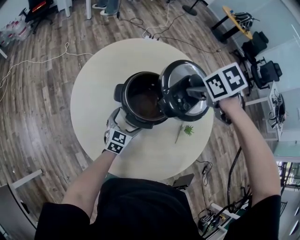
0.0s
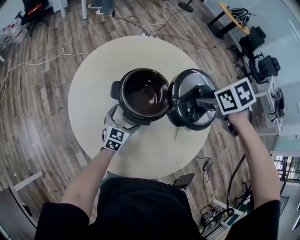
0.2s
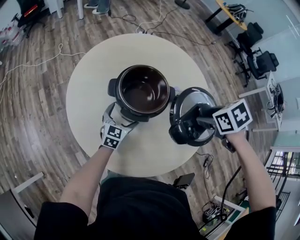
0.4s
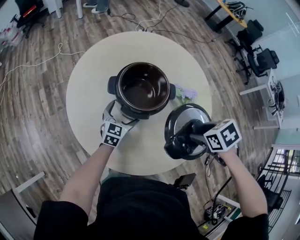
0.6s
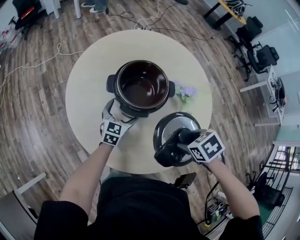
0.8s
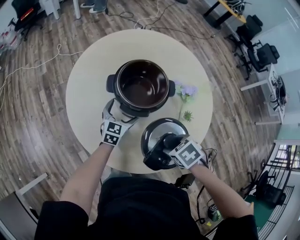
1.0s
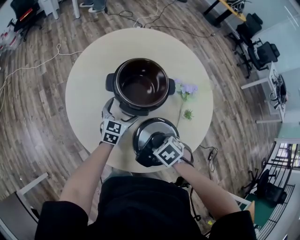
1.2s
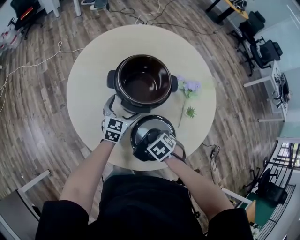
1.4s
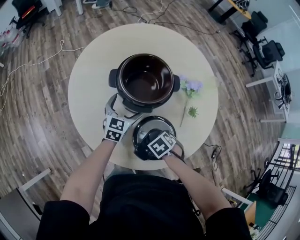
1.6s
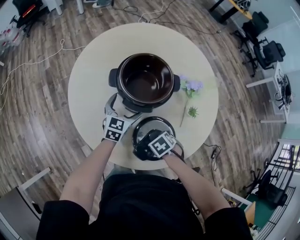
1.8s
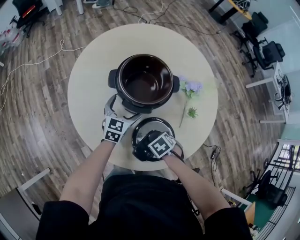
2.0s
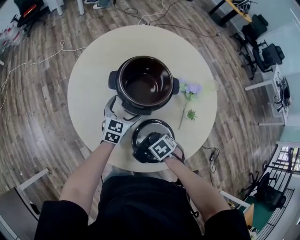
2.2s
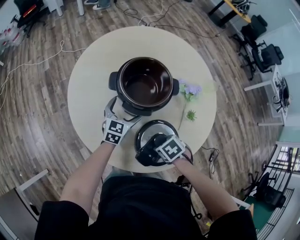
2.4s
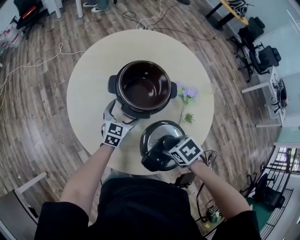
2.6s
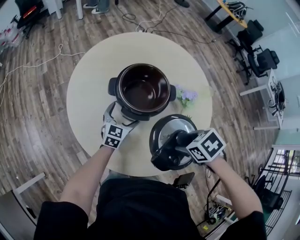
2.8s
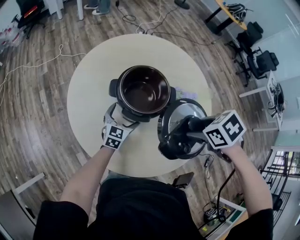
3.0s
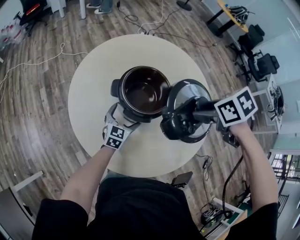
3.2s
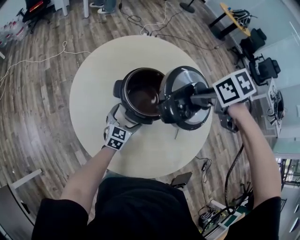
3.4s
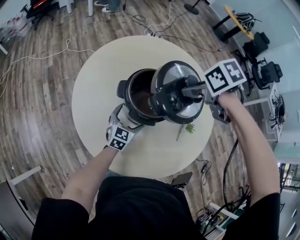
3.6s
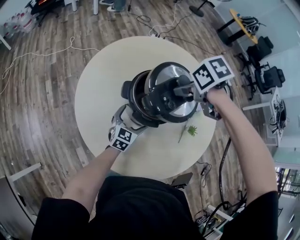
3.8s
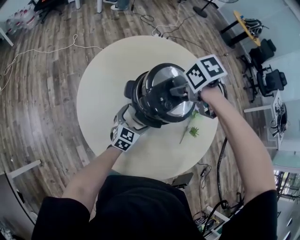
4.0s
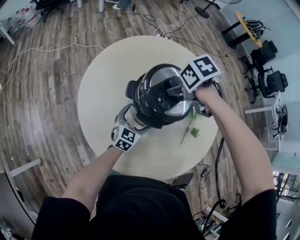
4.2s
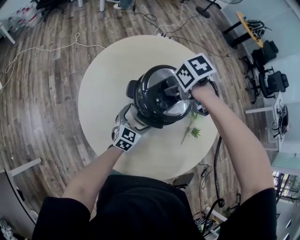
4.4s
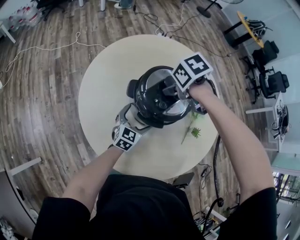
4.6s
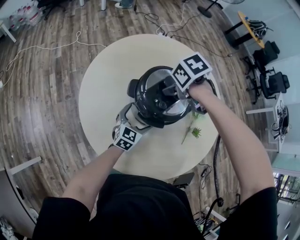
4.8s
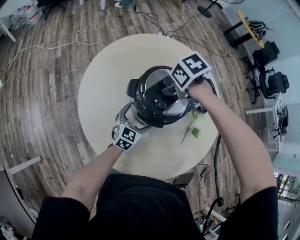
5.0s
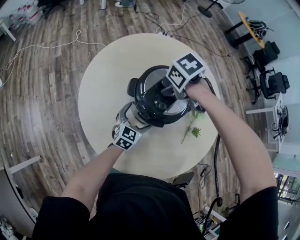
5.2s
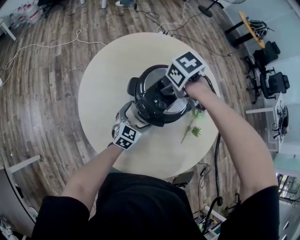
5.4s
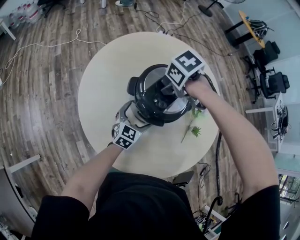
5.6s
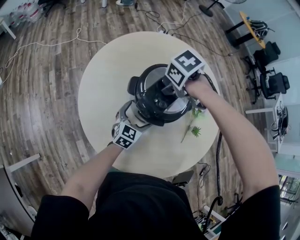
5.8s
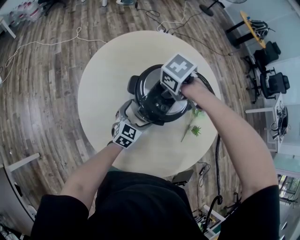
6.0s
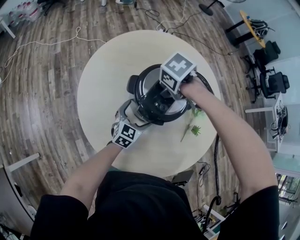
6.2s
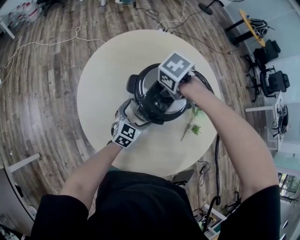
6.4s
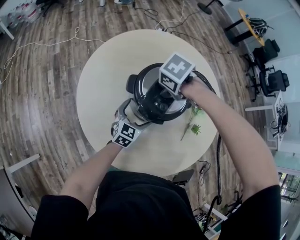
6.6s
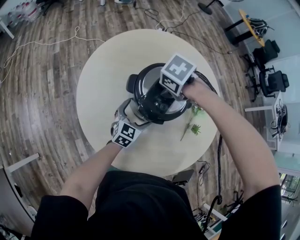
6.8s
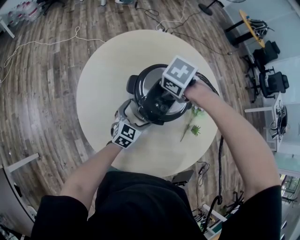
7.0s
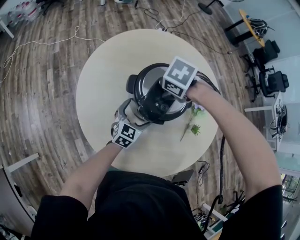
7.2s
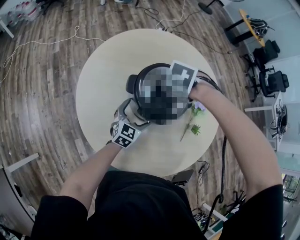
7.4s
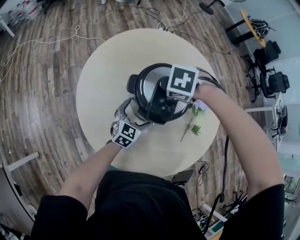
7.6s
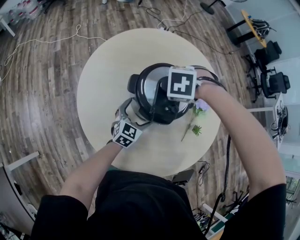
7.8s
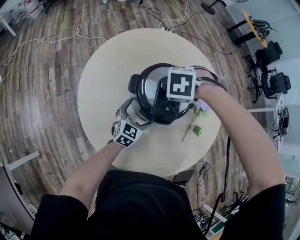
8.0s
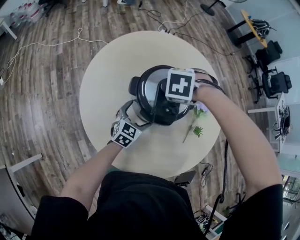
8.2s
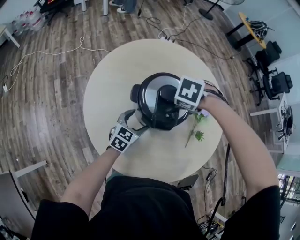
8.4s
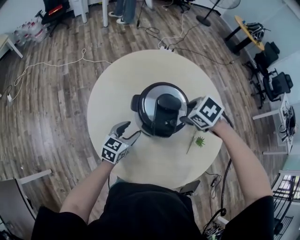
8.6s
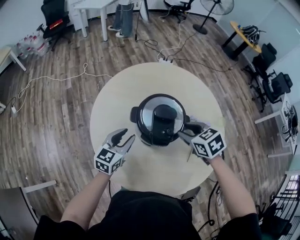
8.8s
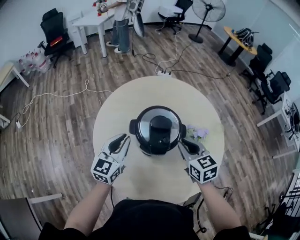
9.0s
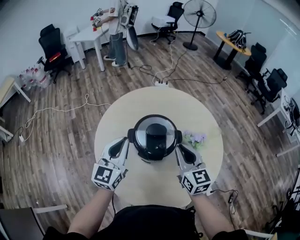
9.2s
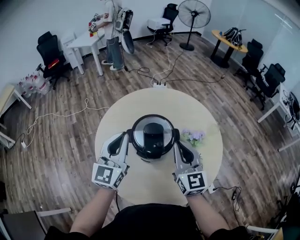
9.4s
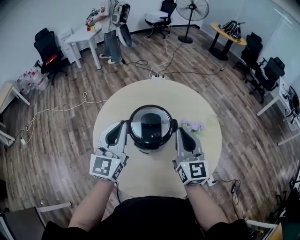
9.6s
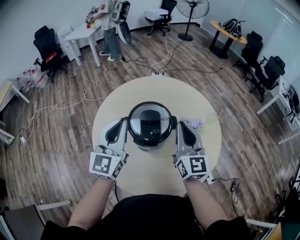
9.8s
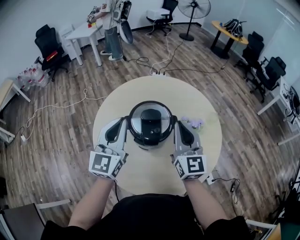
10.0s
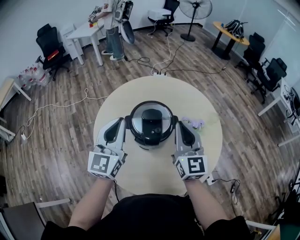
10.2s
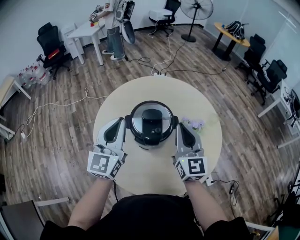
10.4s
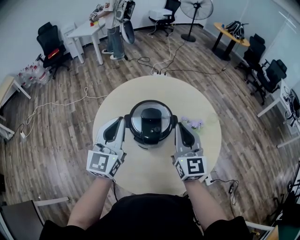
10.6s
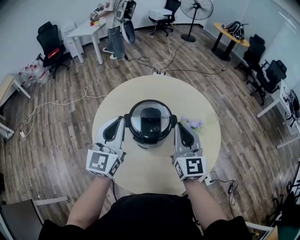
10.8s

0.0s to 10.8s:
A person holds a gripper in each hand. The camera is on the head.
0.0s to 1.6s: The right gripper travels downward by some 30 cm.
1.6s to 3.0s: The right gripper goes roughly 25 cm upward.
3.0s to 4.6s: The right gripper ends up approximately 25 cm from where it was.
6.2s to 7.8s: The right gripper twists roughly 40 degrees counterclockwise, seen from behind.
7.8s to 9.2s: The left gripper travels upward by some 30 cm, turns by approximately 30 degrees, and closes. Meanwhile the right gripper heads upward, covering about 15 cm, angles its fingers upward, by roughly 70 degrees, and closes.
9.2s to 10.8s: Both grippers move upward, some 5 cm.

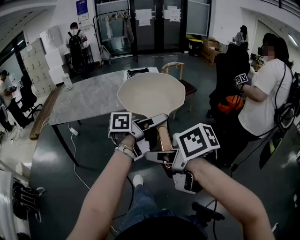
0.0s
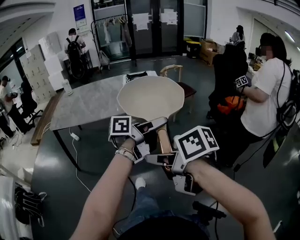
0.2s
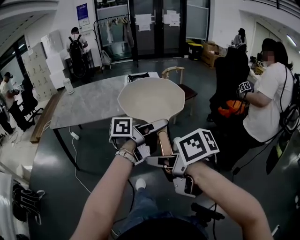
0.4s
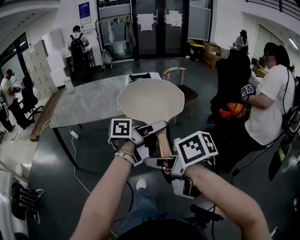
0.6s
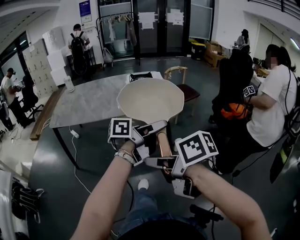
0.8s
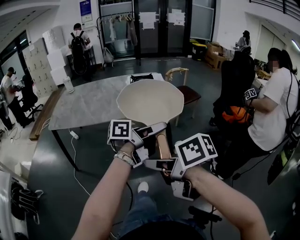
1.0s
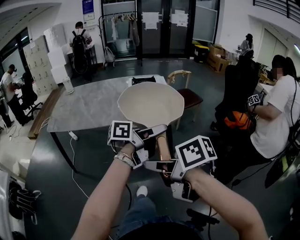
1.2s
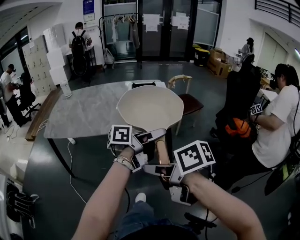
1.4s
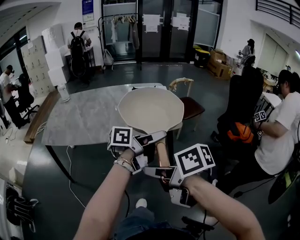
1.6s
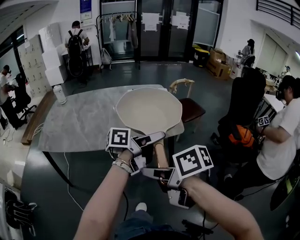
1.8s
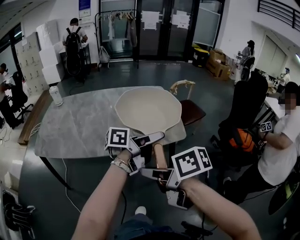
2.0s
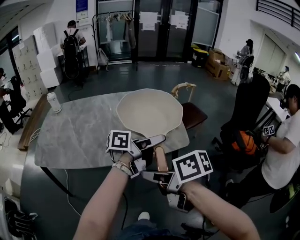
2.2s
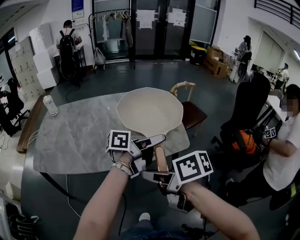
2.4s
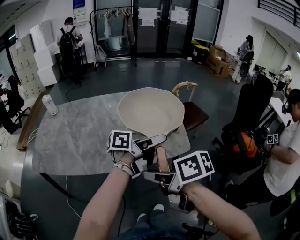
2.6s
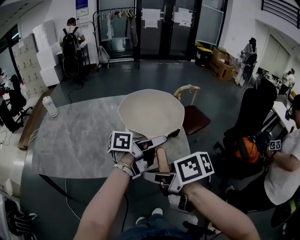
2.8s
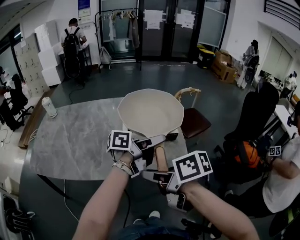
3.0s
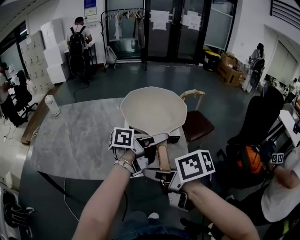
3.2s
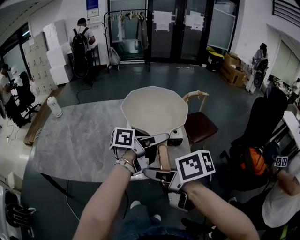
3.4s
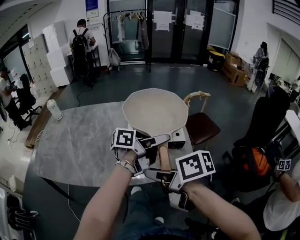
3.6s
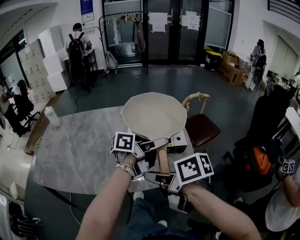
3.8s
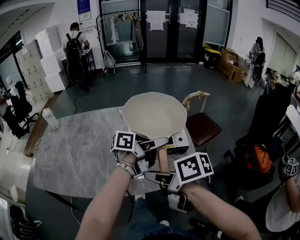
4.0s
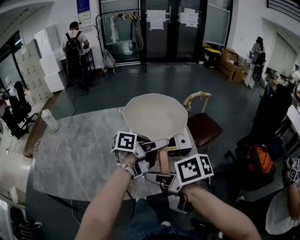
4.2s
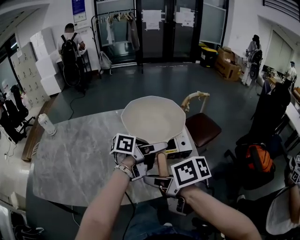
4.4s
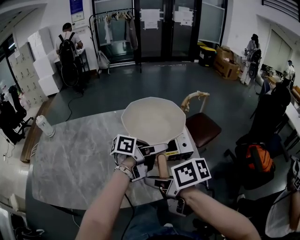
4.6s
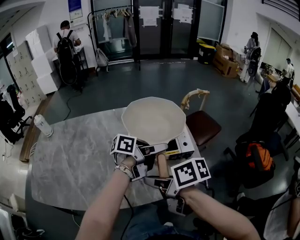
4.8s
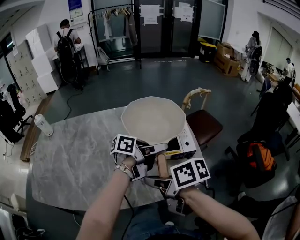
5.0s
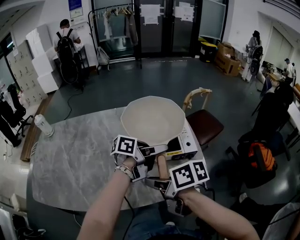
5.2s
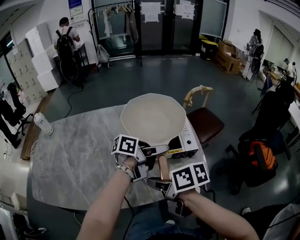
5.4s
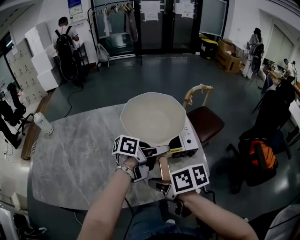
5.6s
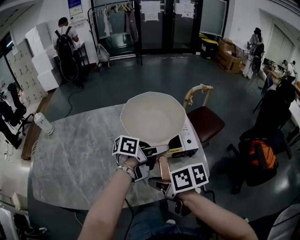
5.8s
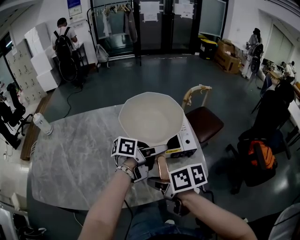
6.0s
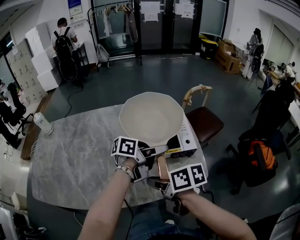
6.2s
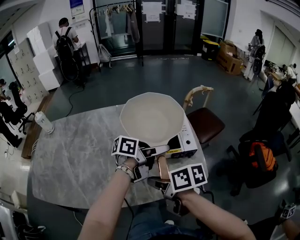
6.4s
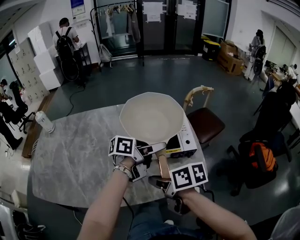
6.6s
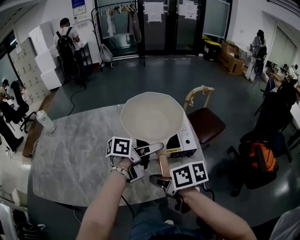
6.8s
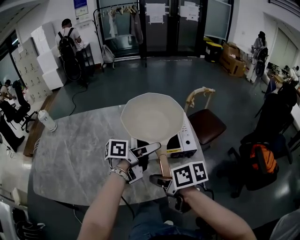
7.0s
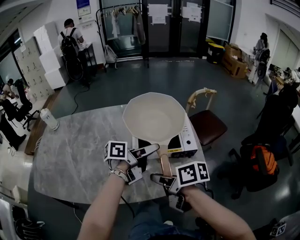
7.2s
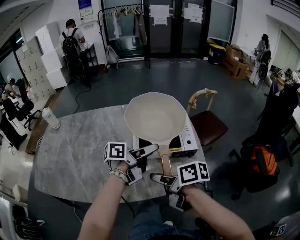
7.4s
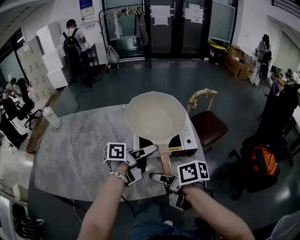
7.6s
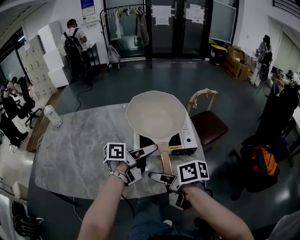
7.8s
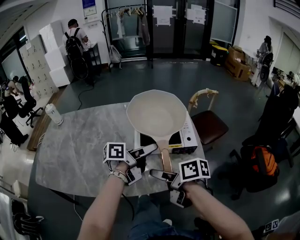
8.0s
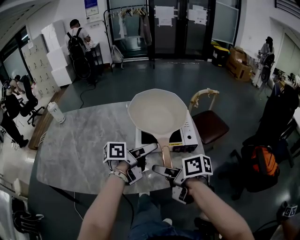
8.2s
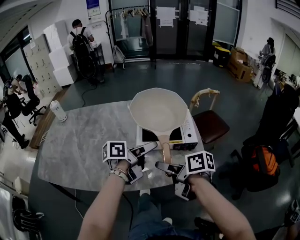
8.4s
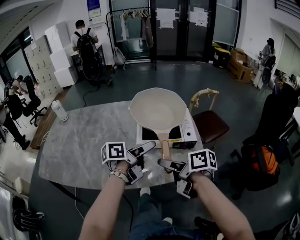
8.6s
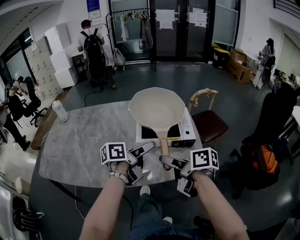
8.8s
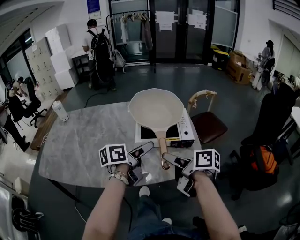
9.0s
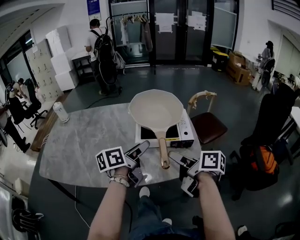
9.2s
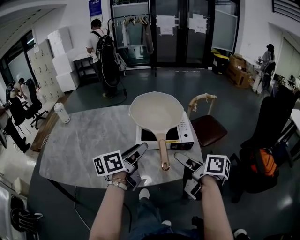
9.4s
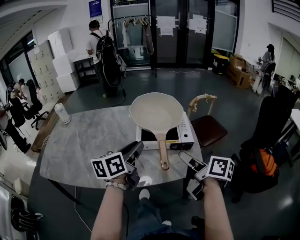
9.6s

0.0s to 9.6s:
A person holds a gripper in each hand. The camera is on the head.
0.0s to 1.6s: The left gripper shifts by roughly 15 cm. The right gripper changes place by some 15 cm.
1.6s to 3.2s: The right gripper moves roughly 25 cm; the left gripper ends up some 25 cm from where it was.
3.2s to 4.8s: The left gripper changes place by about 15 cm, while the right gripper moves some 15 cm.
4.8s to 6.4s: The right gripper goes some 5 cm downward.
6.4s to 8.0s: The left gripper ends up about 5 cm from where it was; the right gripper opens its fingers.
8.0s to 9.6s: The left gripper travels upward, to the left and backward by some 10 cm, swivels approximately 40 degrees, and closes its fingers. Meanwhile the right gripper heads to the right and upward, covering about 15 cm, and turns by roughly 30 degrees.

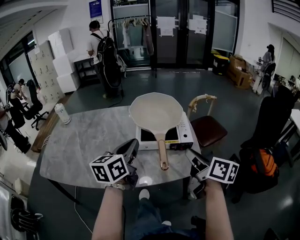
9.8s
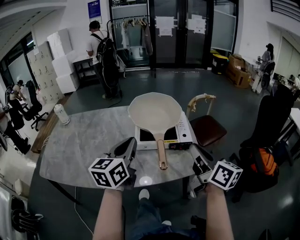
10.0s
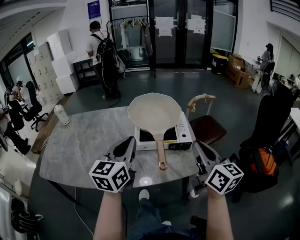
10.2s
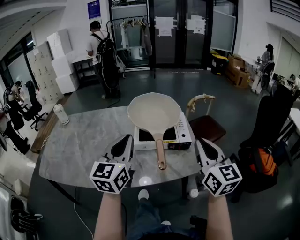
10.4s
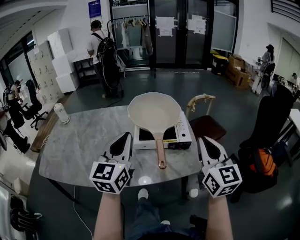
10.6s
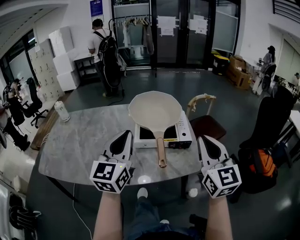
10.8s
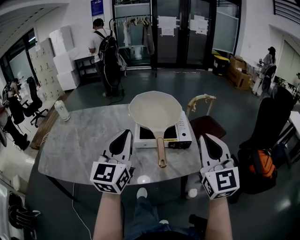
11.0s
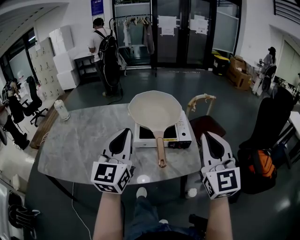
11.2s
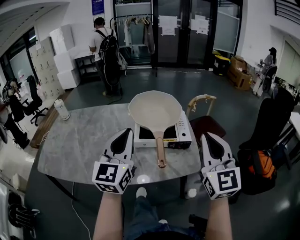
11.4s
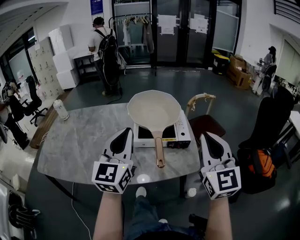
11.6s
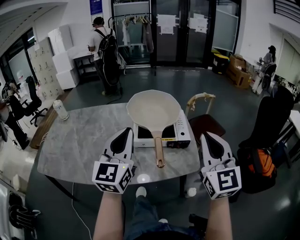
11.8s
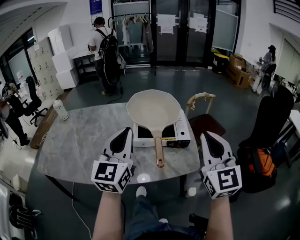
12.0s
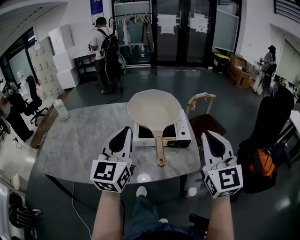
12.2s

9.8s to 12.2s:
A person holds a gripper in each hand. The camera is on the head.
9.8s to 11.0s: The two grippers go about 10 cm upward. The left gripper swivels approximately 30 degrees, while the right gripper twists roughly 60 degrees counterclockwise, seen from behind.
11.0s to 12.2s: The grippers move only a little.

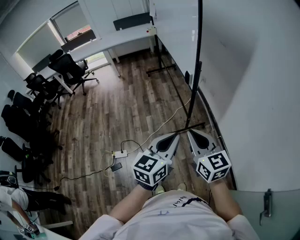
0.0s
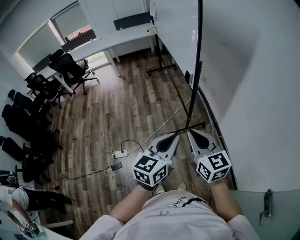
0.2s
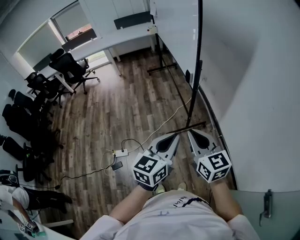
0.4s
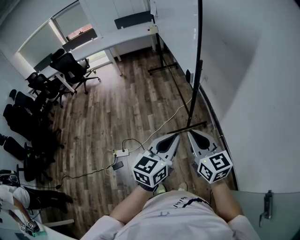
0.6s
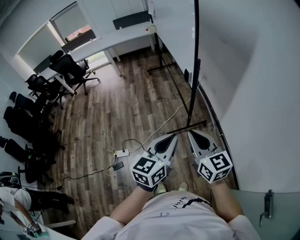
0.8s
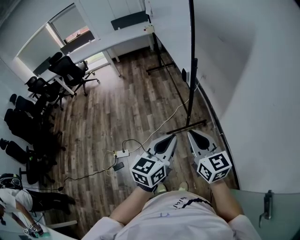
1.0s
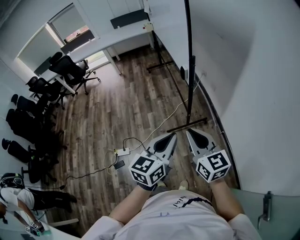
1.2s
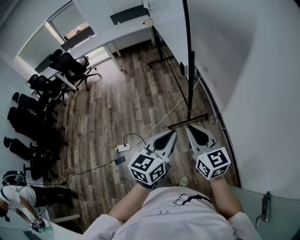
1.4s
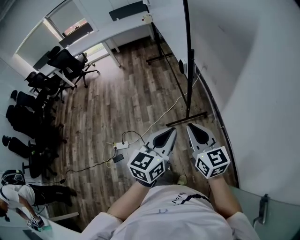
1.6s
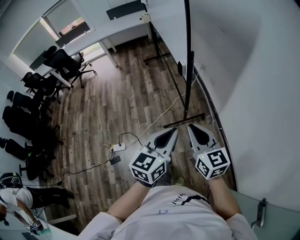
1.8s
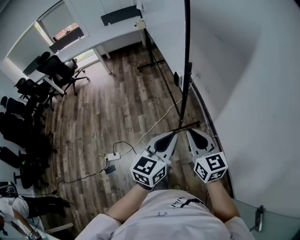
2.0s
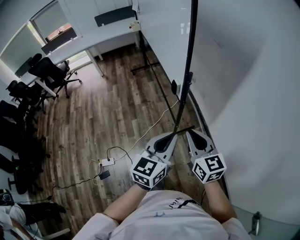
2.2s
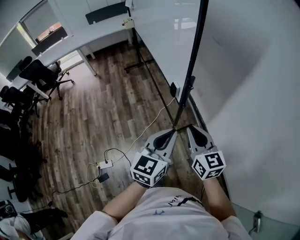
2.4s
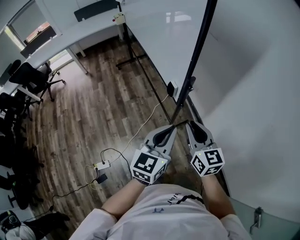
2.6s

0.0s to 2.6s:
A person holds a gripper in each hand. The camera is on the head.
0.0s to 1.2s: The grippers make only small movements.
1.2s to 2.6s: The grippers both shift forward by approximately 25 cm. The right gripper turns by roughly 20 degrees.
